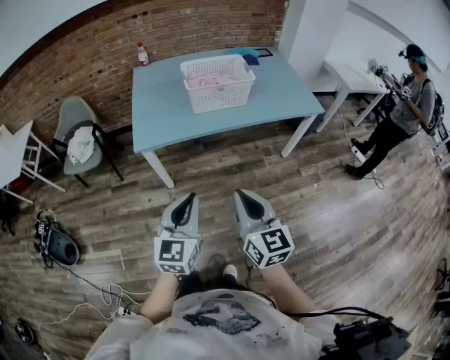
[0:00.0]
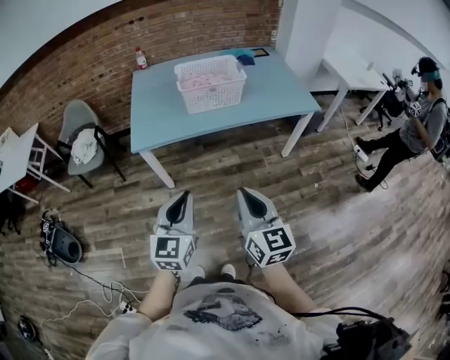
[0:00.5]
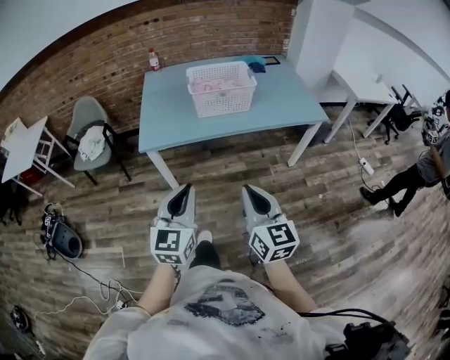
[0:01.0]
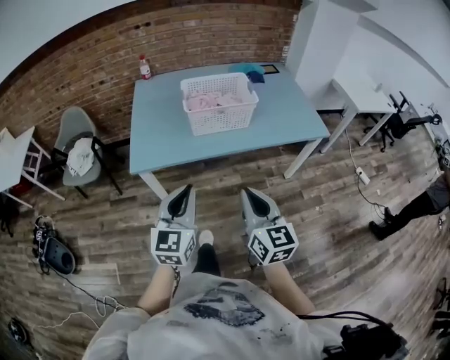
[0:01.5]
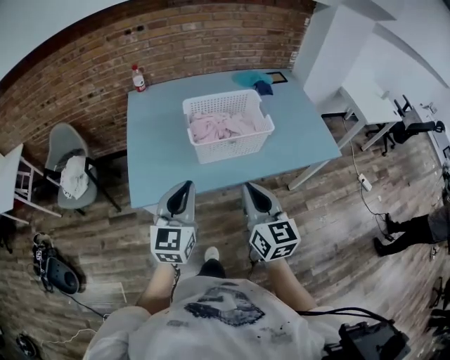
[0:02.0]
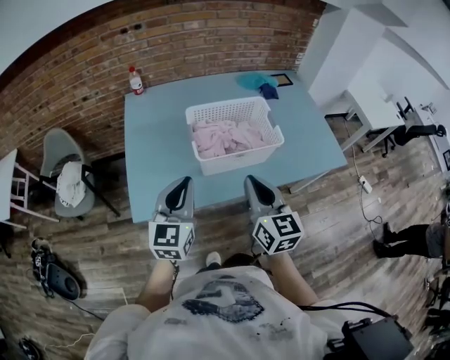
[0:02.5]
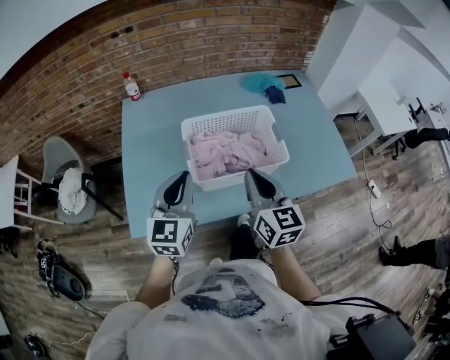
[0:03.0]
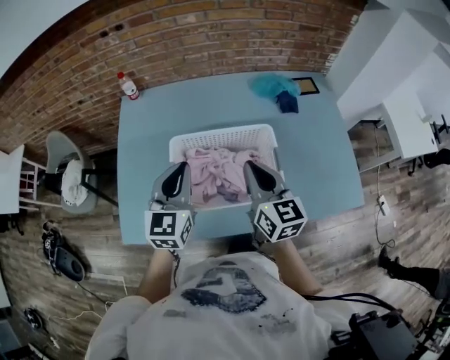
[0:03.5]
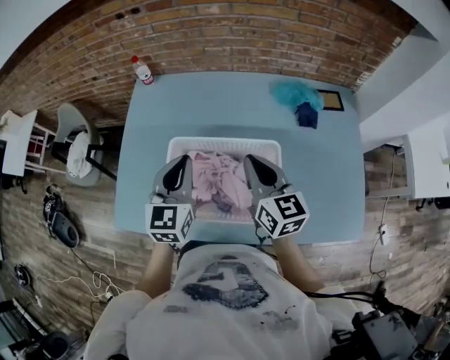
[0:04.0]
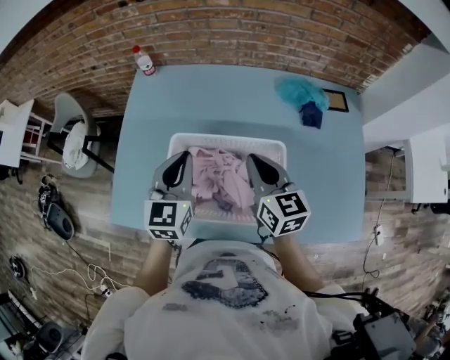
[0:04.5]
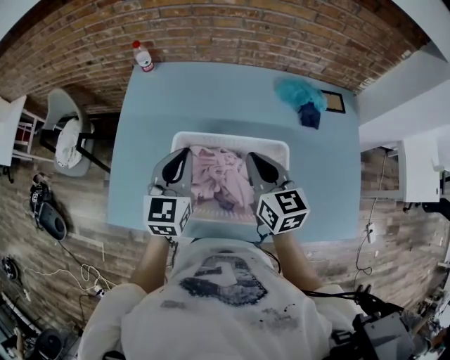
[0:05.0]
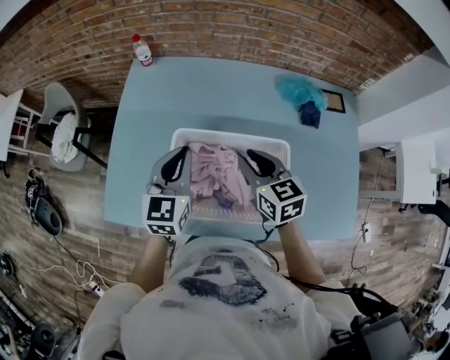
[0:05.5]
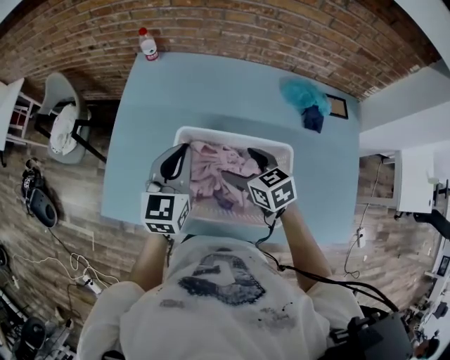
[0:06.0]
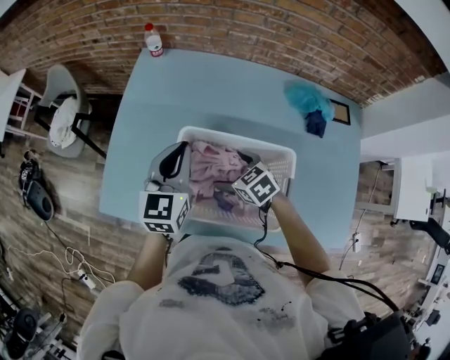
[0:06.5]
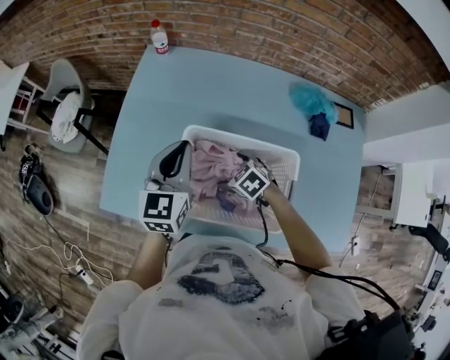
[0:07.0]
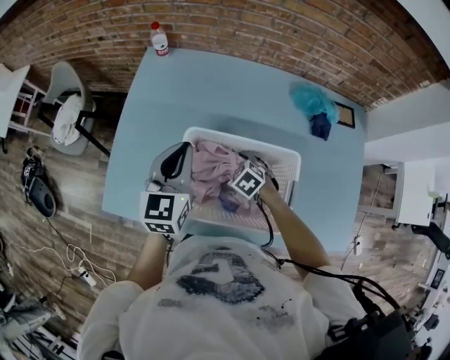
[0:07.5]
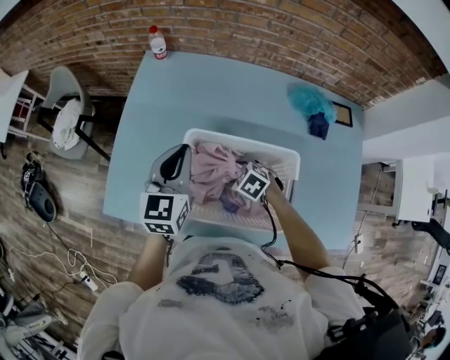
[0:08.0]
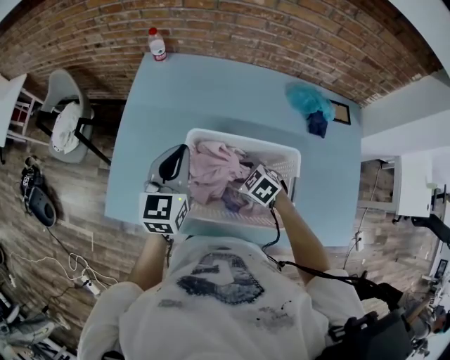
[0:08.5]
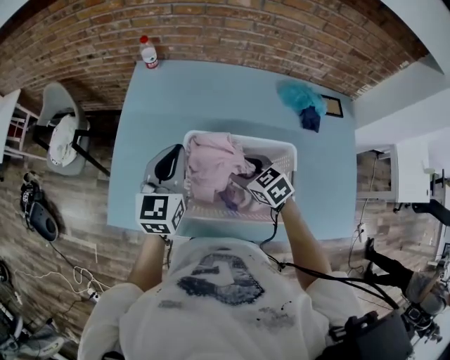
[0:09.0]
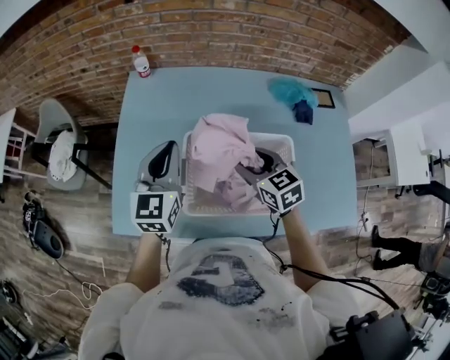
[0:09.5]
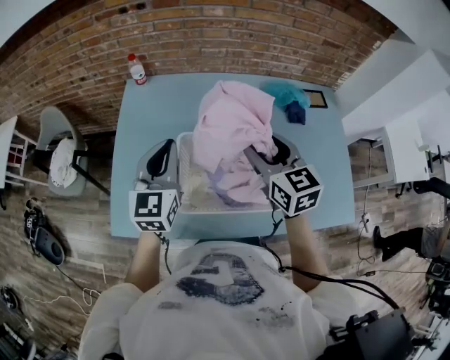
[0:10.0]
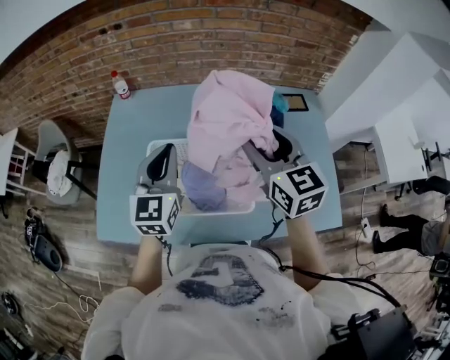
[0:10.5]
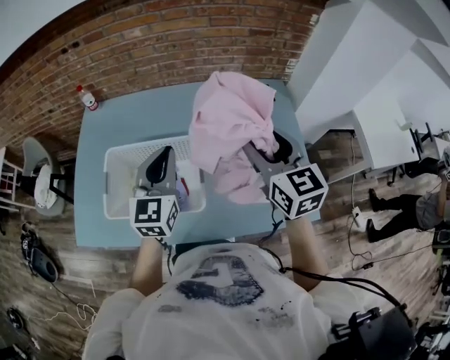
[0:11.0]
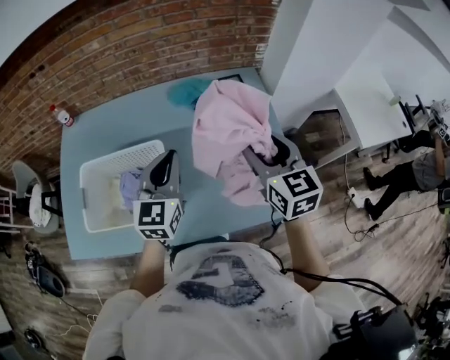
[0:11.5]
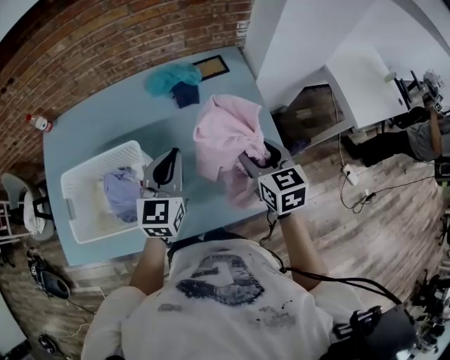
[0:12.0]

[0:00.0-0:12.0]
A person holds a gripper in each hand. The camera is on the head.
0:00.0 to 0:02.0: The grippers both shift forward by some 35 cm.
0:02.0 to 0:04.0: The two grippers travel together, forward, some 40 cm. The right gripper rotates approximately 20 degrees. The left gripper rotates approximately 20 degrees.
0:04.0 to 0:06.0: The right gripper travels downward and to the left by some 15 cm, swivels about 40 degrees, and opens up, while the left gripper ends up about 5 cm from where it was.
0:06.0 to 0:08.0: The right gripper travels downward by some 15 cm, and swivels roughly 40 degrees.
0:08.0 to 0:10.0: The right gripper travels upward by approximately 30 cm, and tips its fingers upward by some 50 degrees. Meanwhile the left gripper goes about 5 cm upward.
0:10.0 to 0:12.0: The pair of grippers is taken to the right, approximately 50 cm. The right gripper swivels approximately 20 degrees.

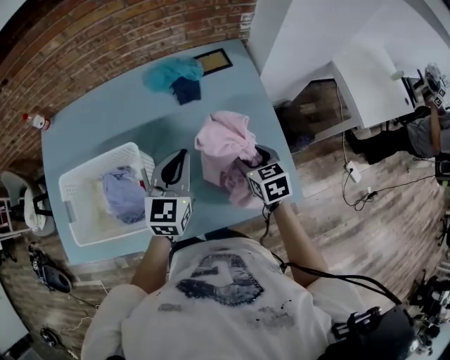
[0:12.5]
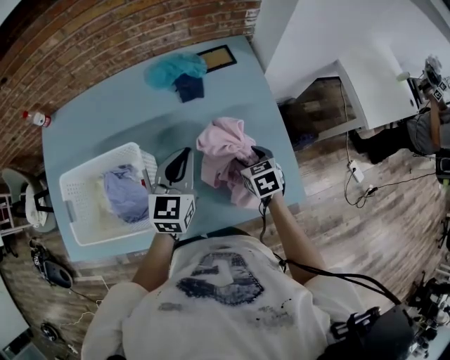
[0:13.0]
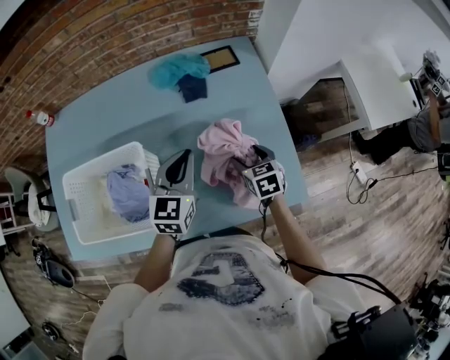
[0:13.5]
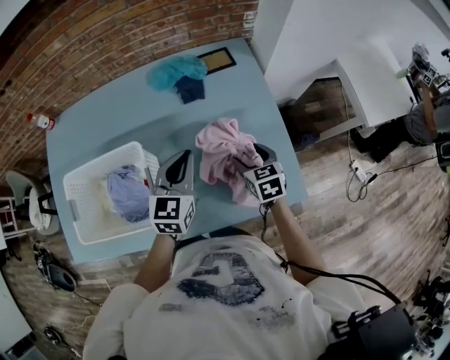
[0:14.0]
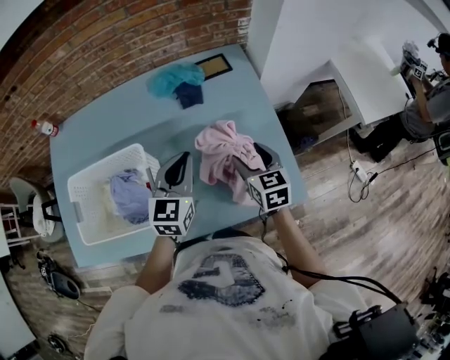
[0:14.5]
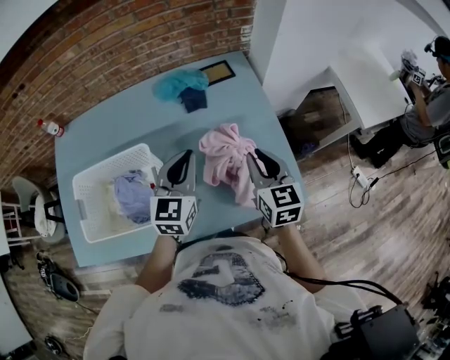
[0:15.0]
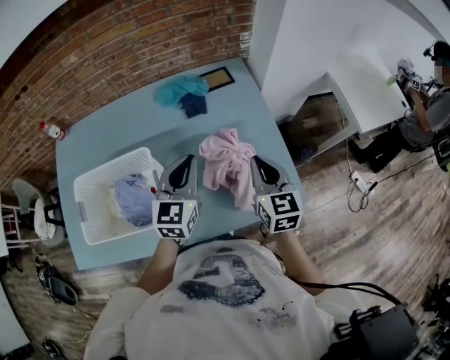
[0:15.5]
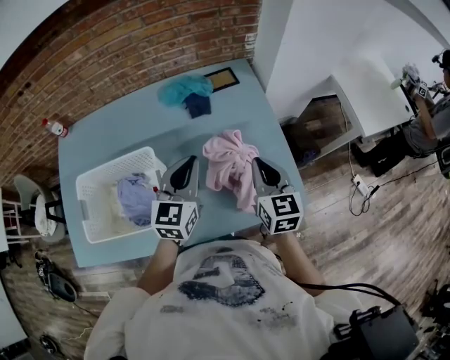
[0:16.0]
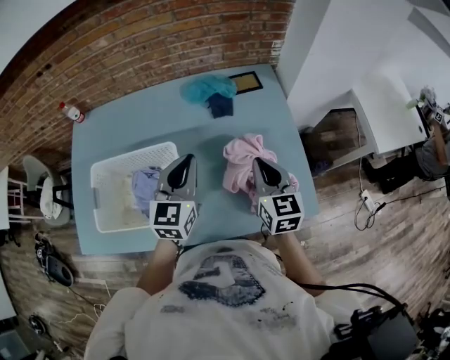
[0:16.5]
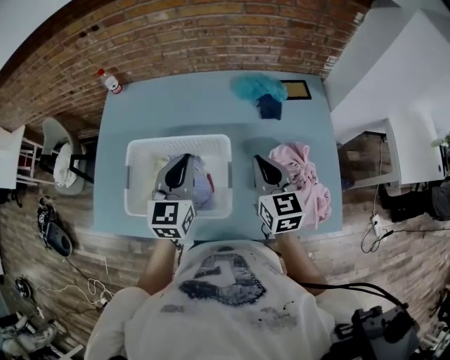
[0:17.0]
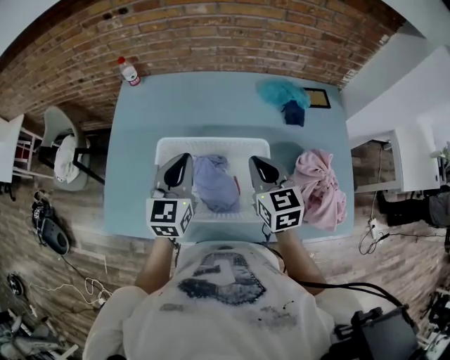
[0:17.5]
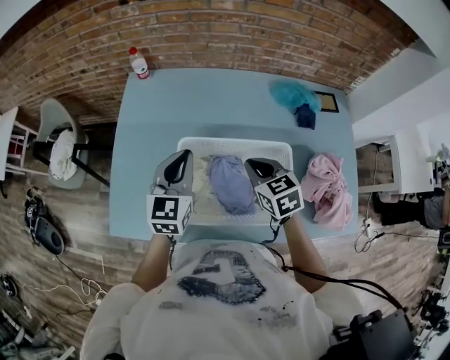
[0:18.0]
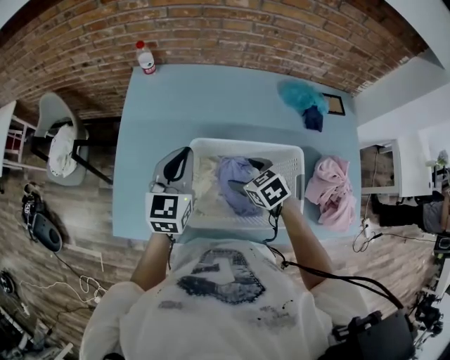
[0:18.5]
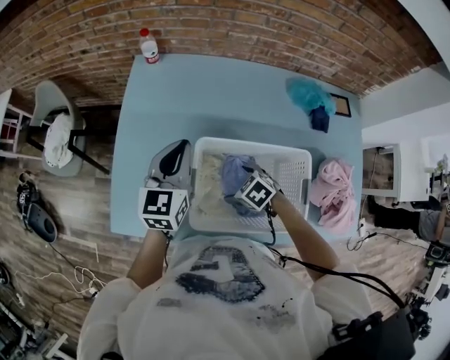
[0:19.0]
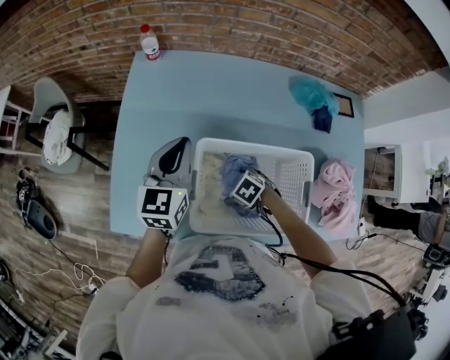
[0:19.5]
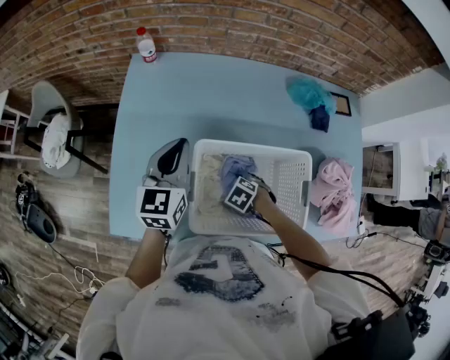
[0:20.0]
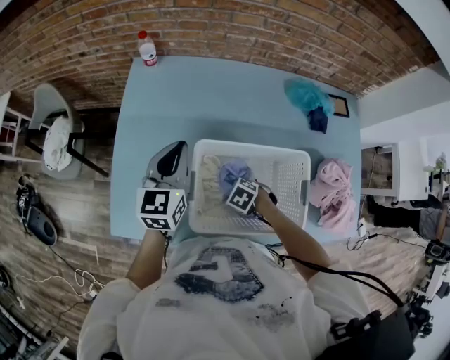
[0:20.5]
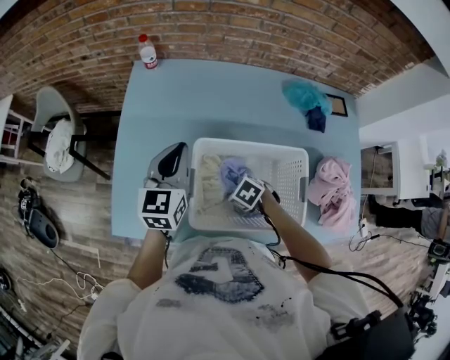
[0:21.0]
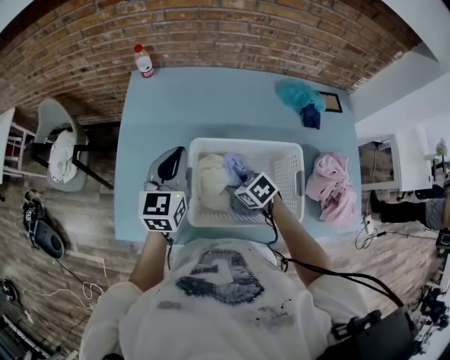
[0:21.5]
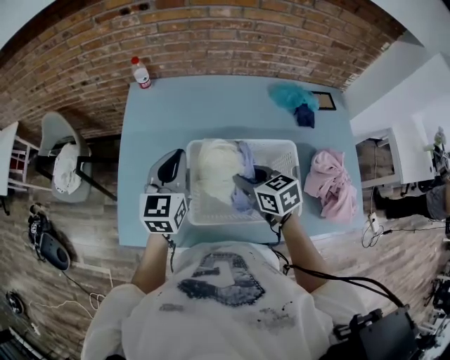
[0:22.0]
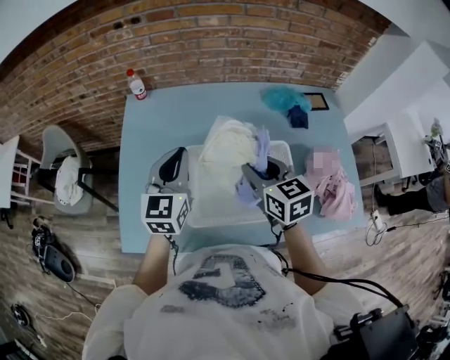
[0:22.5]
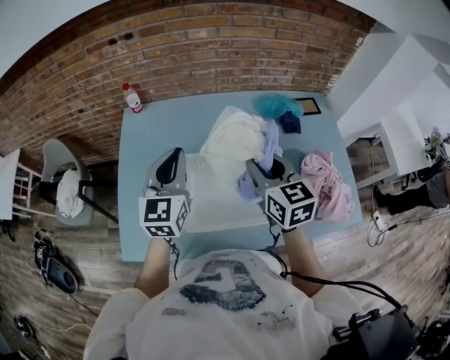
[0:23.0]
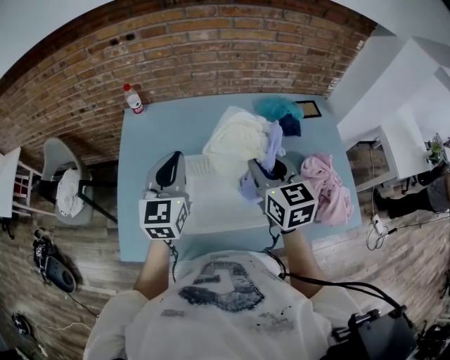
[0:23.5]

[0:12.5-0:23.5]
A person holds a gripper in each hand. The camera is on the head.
0:14.5 to 0:16.0: The right gripper goes some 10 cm upward, and closes its fingers.
0:16.0 to 0:18.0: The two grippers travel together, approximately 50 cm. The right gripper rotates roughly 40 degrees.
0:18.0 to 0:20.0: The left gripper moves roughly 10 cm. The right gripper moves downward, some 25 cm, points its fingers roughly 40 degrees further downward, and opens.
0:20.0 to 0:21.5: The right gripper moves upward, about 10 cm, rotates about 30 degrees, and closes its fingers.
0:21.5 to 0:23.5: The left gripper travels upward by roughly 10 cm. The right gripper is displaced upward by about 25 cm, and points its fingers roughly 40 degrees further upward.

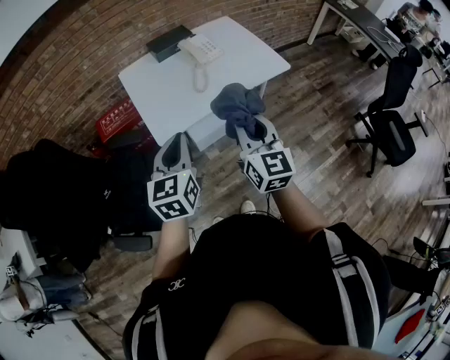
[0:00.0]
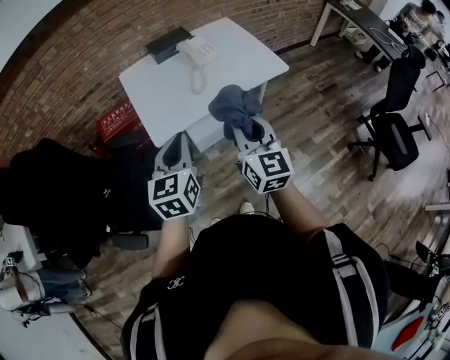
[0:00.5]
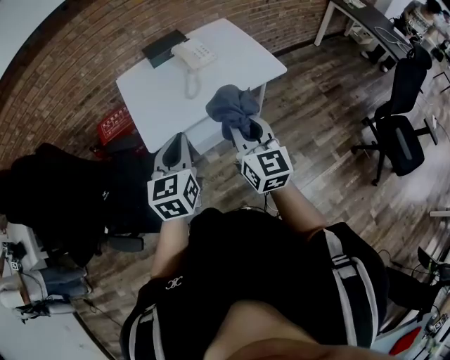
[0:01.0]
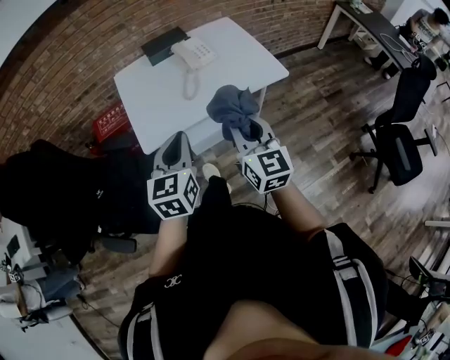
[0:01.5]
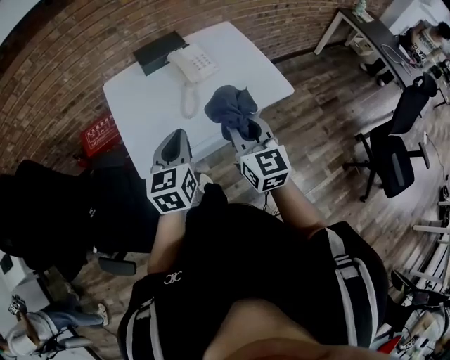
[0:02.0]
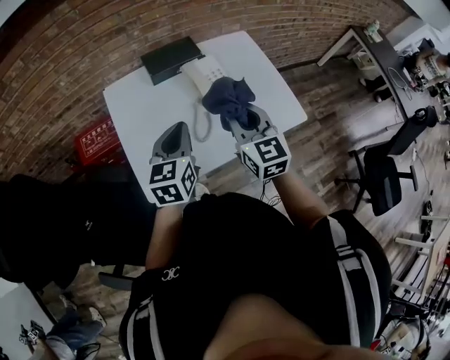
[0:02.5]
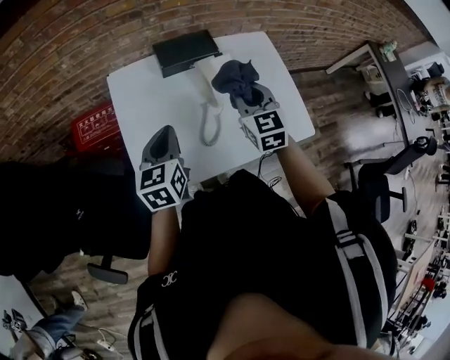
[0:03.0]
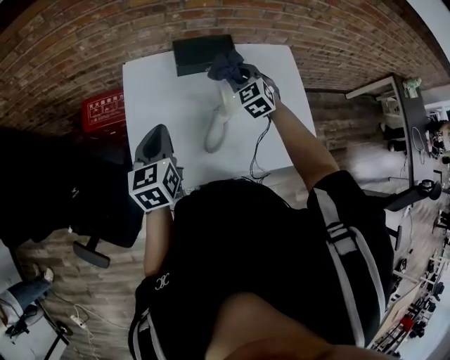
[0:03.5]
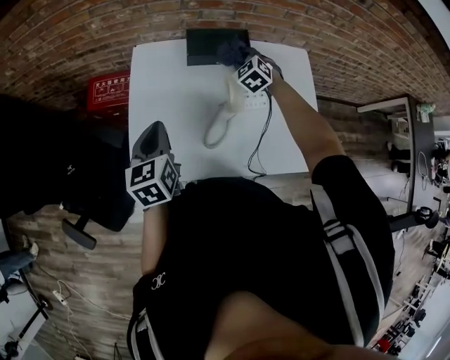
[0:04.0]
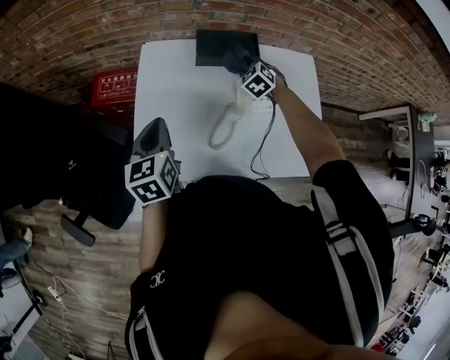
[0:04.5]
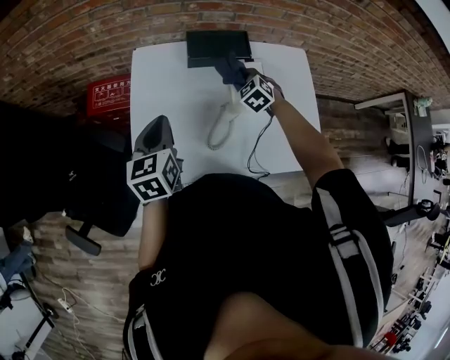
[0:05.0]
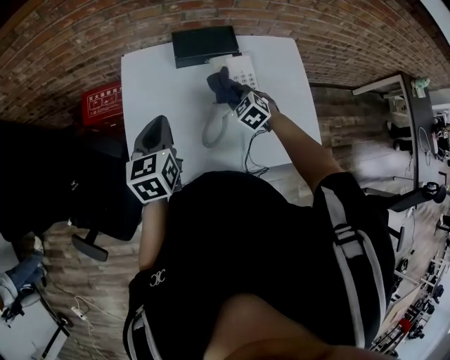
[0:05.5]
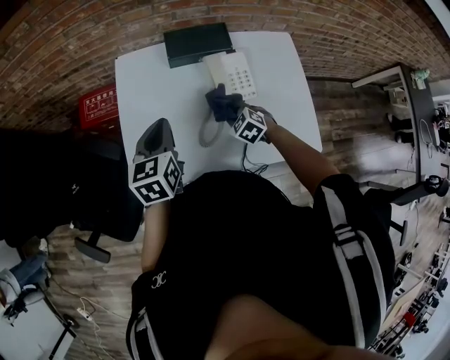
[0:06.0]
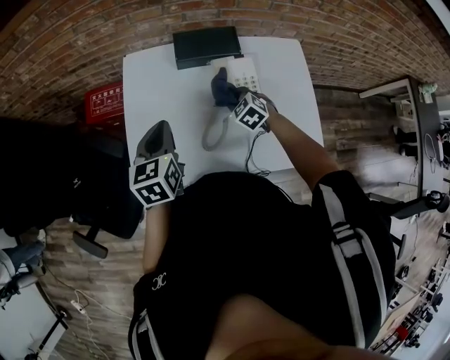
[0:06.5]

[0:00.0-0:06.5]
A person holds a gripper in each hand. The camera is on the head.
0:00.0 to 0:02.0: The left gripper heads forward and to the right, covering some 20 cm, while the right gripper goes roughly 15 cm forward.
0:02.0 to 0:04.5: The right gripper shifts about 50 cm forward and downward, and tips its fingers downward by about 40 degrees. The left gripper heads forward and to the left, covering about 25 cm, and swivels roughly 30 degrees.
0:04.5 to 0:06.5: The right gripper heads backward, covering roughly 10 cm. Meanwhile the left gripper goes about 5 cm to the right.
